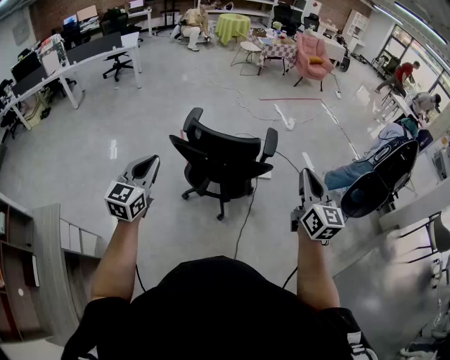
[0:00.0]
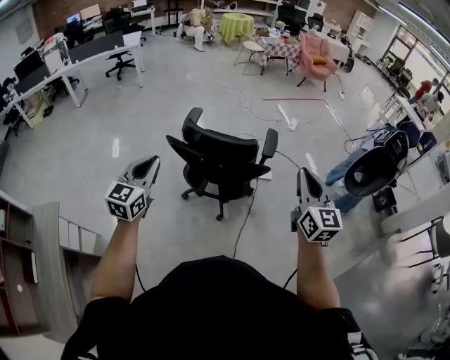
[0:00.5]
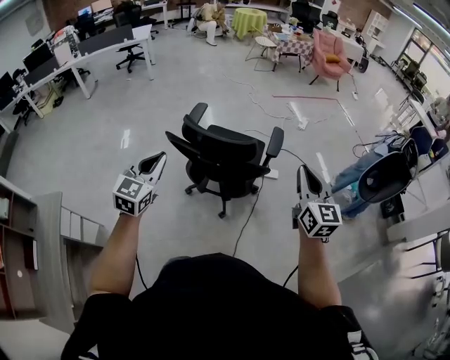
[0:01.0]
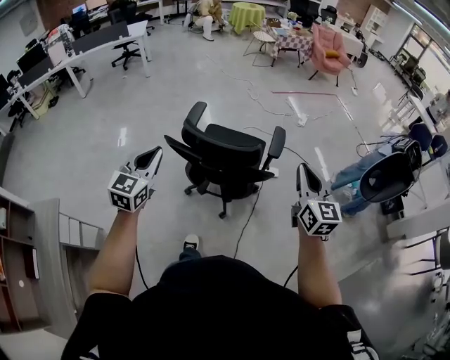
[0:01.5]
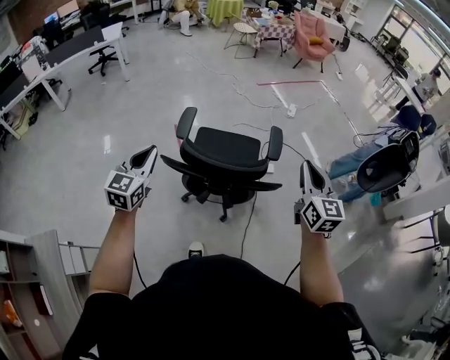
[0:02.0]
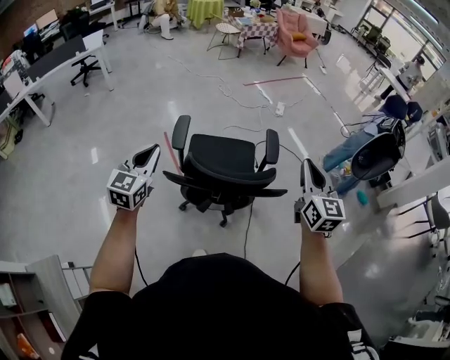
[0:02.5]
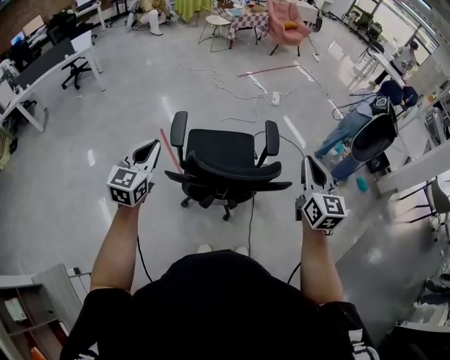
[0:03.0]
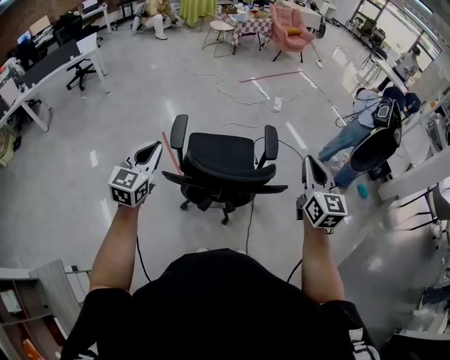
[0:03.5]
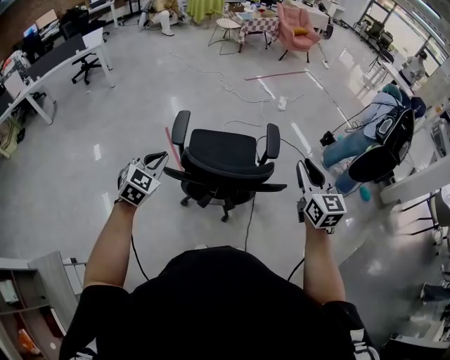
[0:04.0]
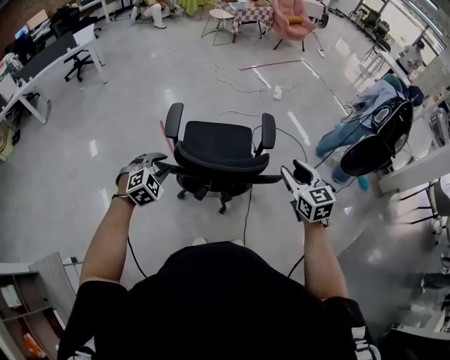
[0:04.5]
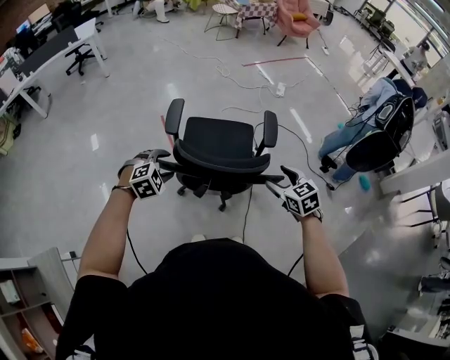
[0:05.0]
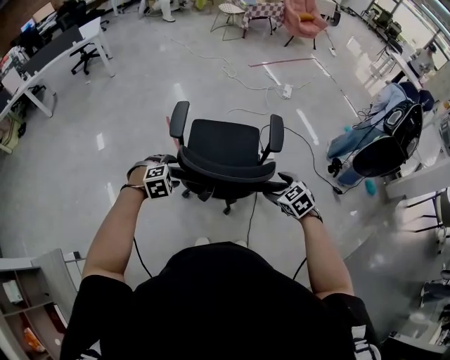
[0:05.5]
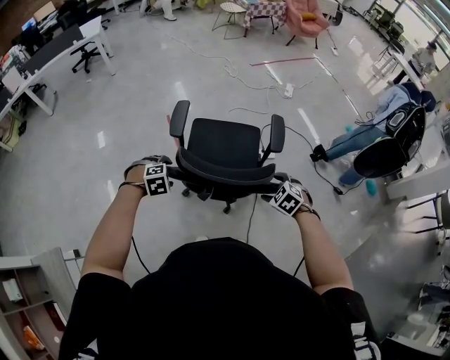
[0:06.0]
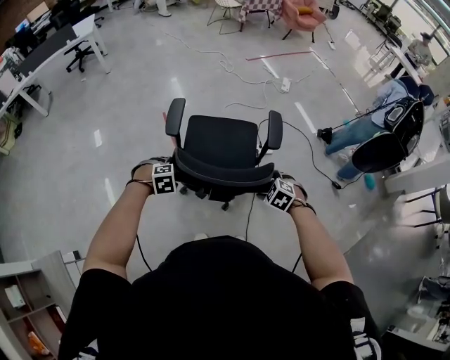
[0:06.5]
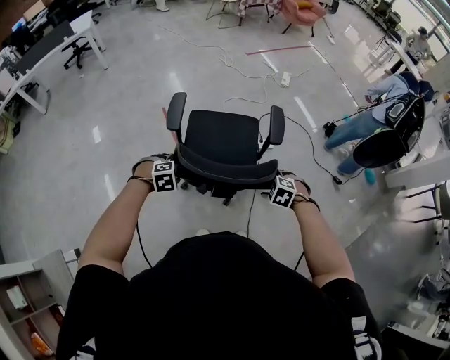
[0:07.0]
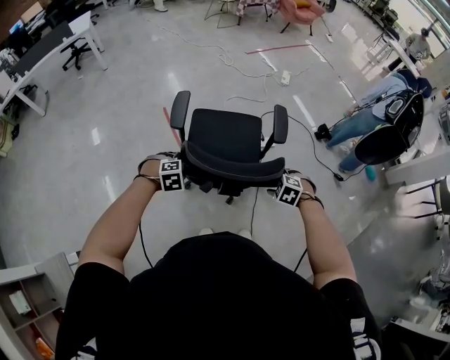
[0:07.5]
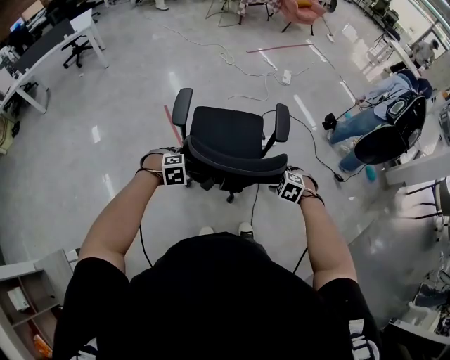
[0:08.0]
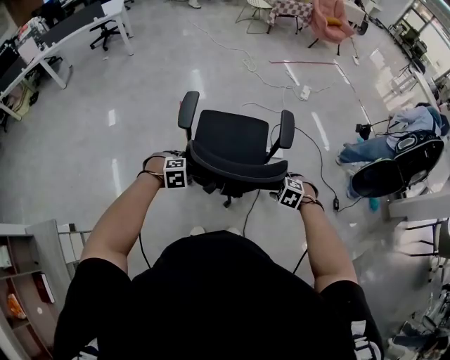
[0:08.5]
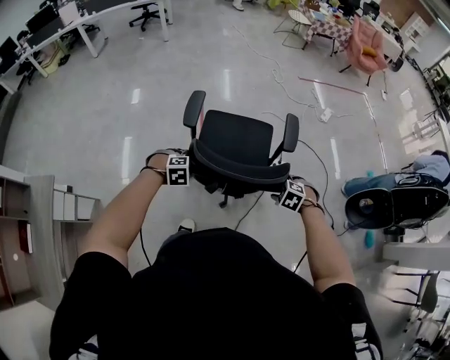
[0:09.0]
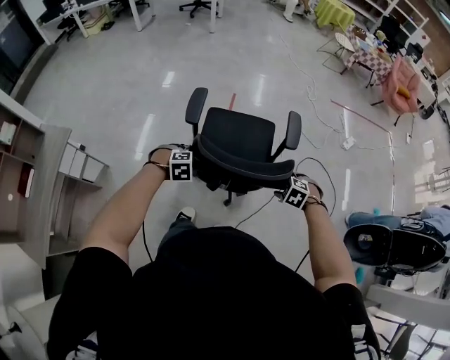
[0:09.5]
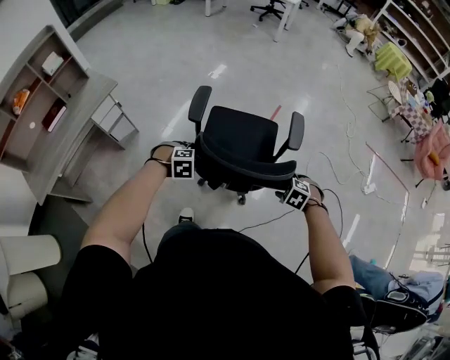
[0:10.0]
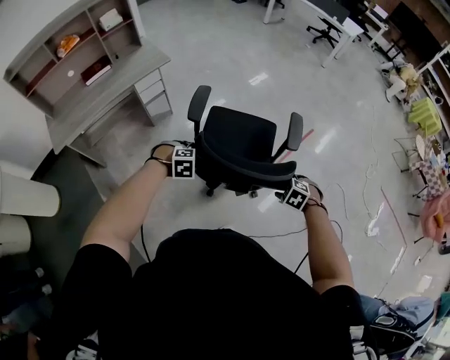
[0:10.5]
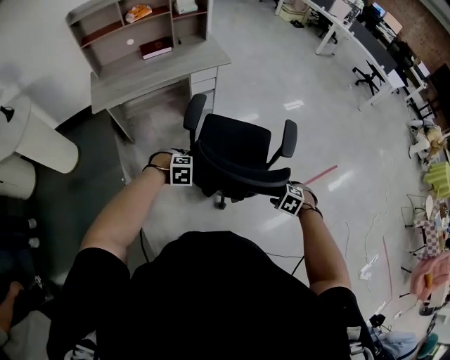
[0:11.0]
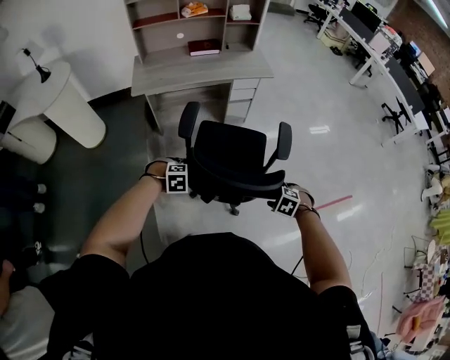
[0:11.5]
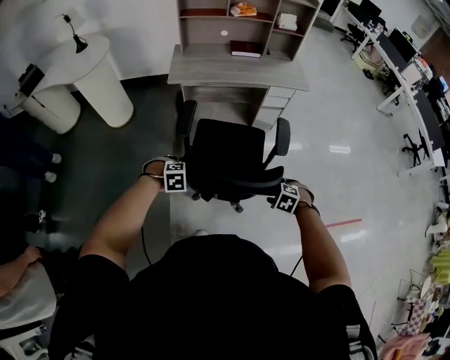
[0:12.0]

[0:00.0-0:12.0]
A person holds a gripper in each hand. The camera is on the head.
0:00.0 to 0:02.0: Both grippers travel together forward, some 20 cm.
0:02.0 to 0:04.0: The left gripper shifts some 10 cm downward and forward, and turns by roughly 30 degrees.
0:04.0 to 0:06.0: The two grippers go roughly 25 cm downward. The left gripper tips its fingers downward by roughly 50 degrees, and opens its fingers. Meanwhile the right gripper angles its fingers downward, by approximately 50 degrees, and opens up.
0:06.0 to 0:08.0: The grippers make only small movements.
0:08.0 to 0:10.0: The left gripper ends up approximately 25 cm from where it was, and rolls counterclockwise, seen from behind, by approximately 50 degrees; the right gripper changes place by roughly 10 cm, and rolls counterclockwise, seen from behind, by approximately 50 degrees.
0:10.0 to 0:12.0: The two grippers travel together, approximately 60 cm. The left gripper rotates around the line of its fingers by roughly 60 degrees, counterclockwise from behind; the right gripper rolls counterclockwise, seen from behind, by about 60 degrees.

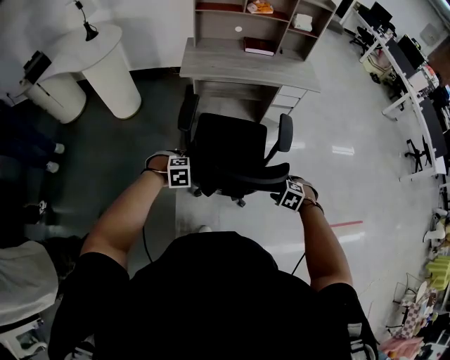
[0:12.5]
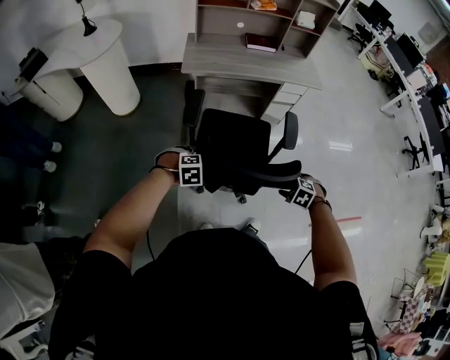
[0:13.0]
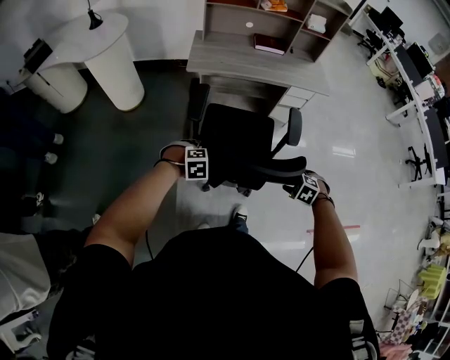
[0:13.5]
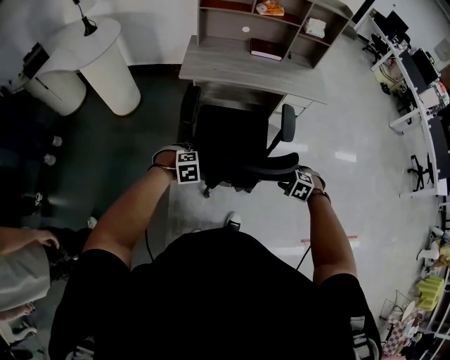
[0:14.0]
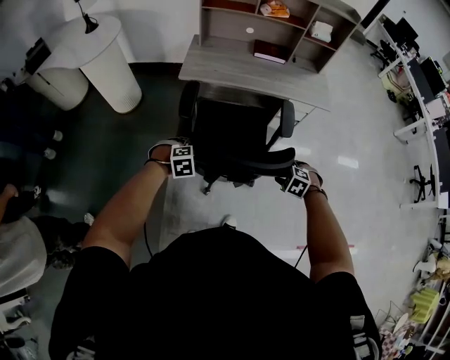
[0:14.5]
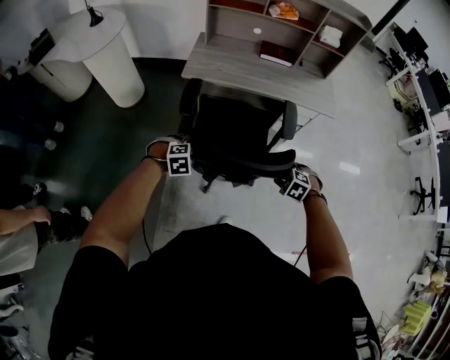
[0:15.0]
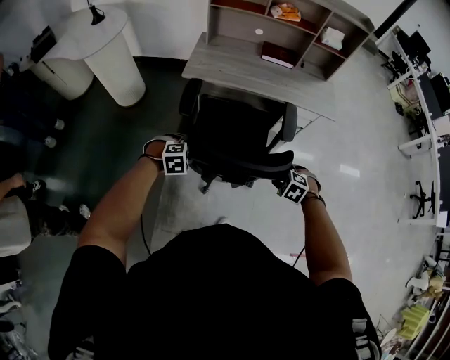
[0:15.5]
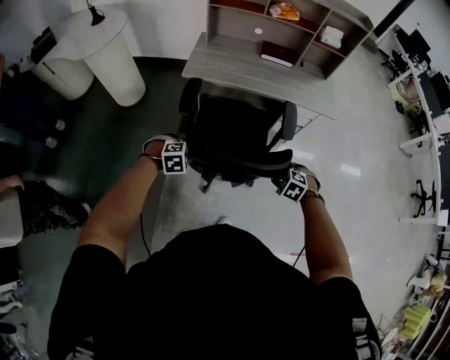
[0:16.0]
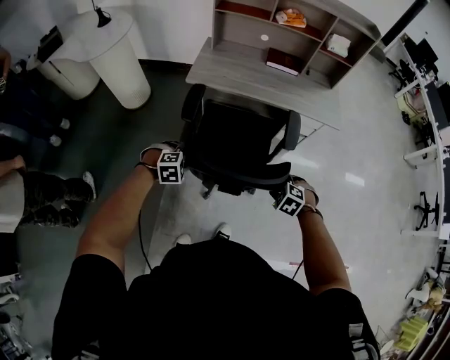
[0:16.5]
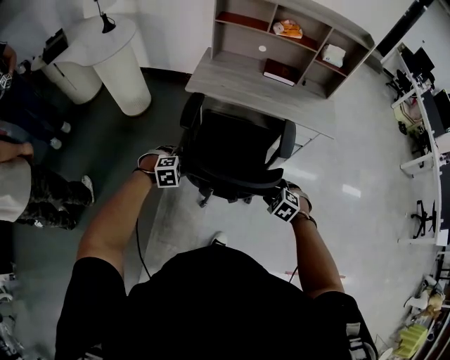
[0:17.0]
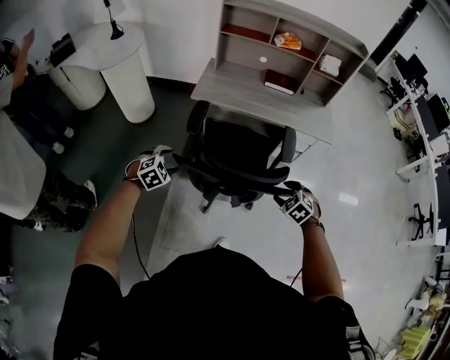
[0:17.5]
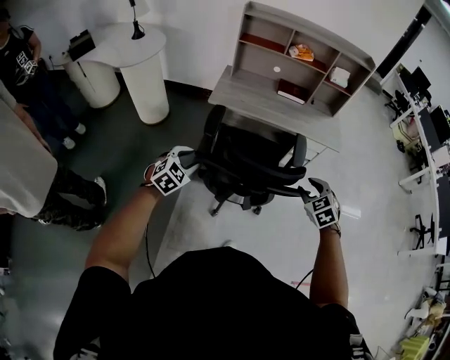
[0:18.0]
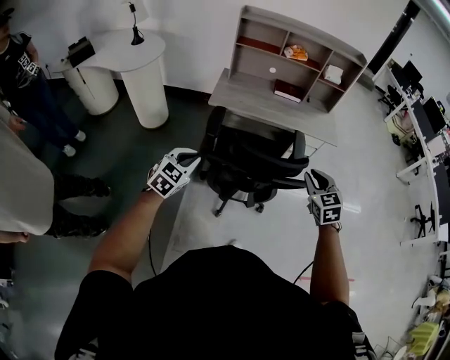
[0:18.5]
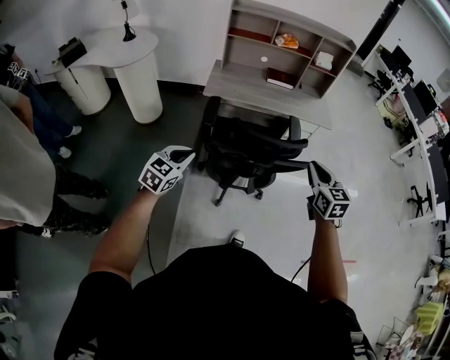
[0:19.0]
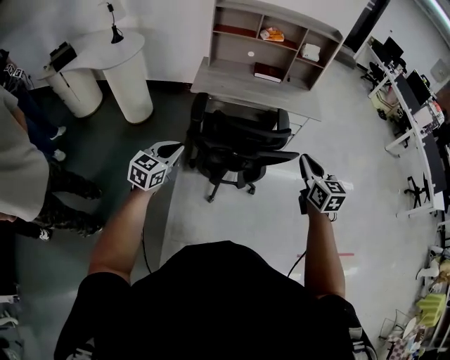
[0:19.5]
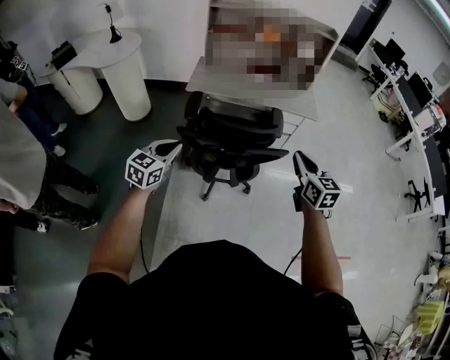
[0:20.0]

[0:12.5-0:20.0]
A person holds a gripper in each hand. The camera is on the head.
0:12.5 to 0:14.5: The left gripper moves some 20 cm. The right gripper ends up approximately 20 cm from where it was.
0:14.5 to 0:16.5: The grippers make only small movements.
0:16.5 to 0:18.0: The left gripper shifts roughly 15 cm upward and to the left, and rotates approximately 40 degrees; the right gripper goes about 15 cm upward, and changes its angle by some 40 degrees.
0:18.0 to 0:20.0: The right gripper is displaced upward and backward by some 15 cm, turns by roughly 50 degrees, and closes its fingers, while the left gripper is displaced backward, upward and to the right by some 15 cm, swivels approximately 30 degrees, and closes its fingers.

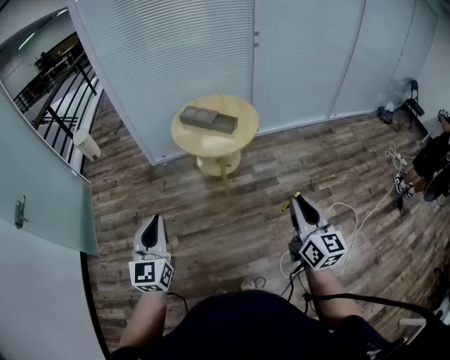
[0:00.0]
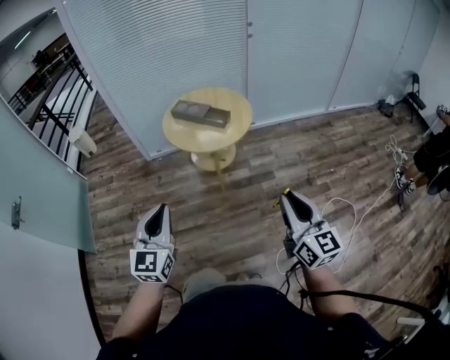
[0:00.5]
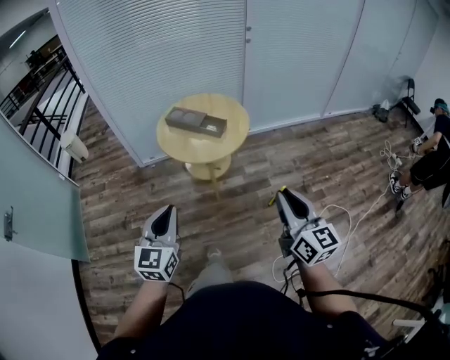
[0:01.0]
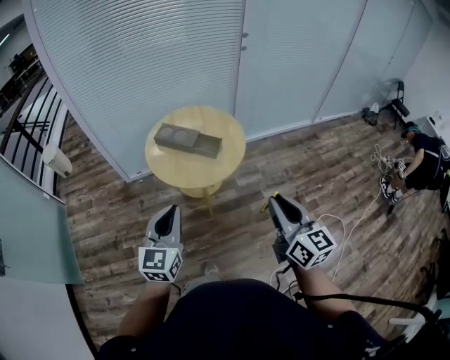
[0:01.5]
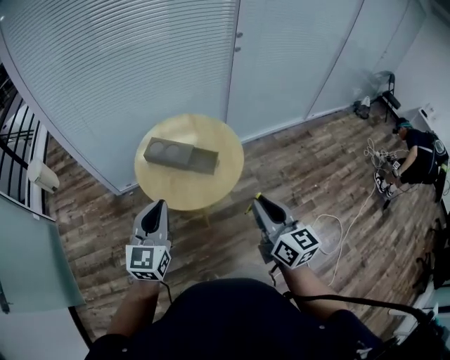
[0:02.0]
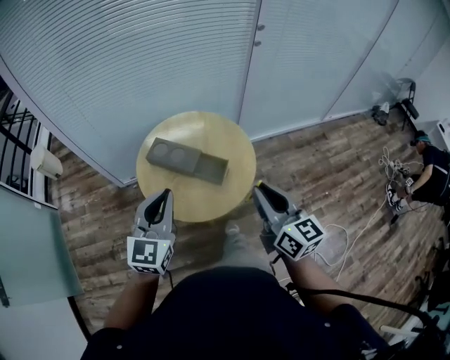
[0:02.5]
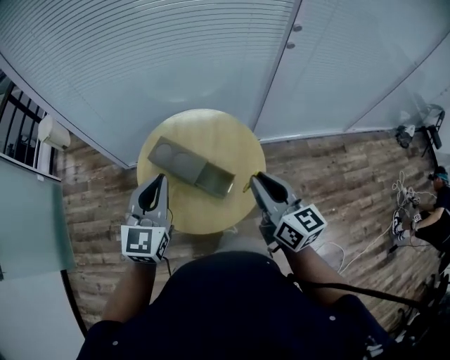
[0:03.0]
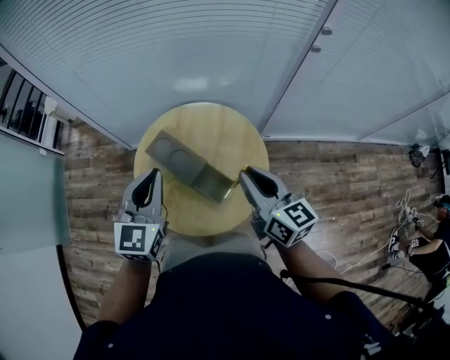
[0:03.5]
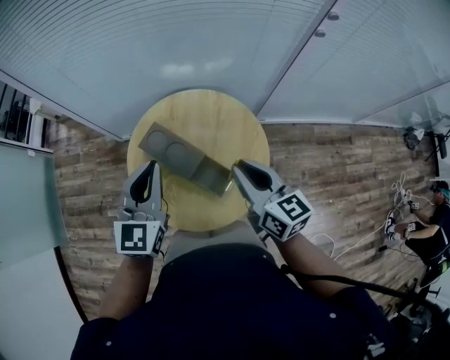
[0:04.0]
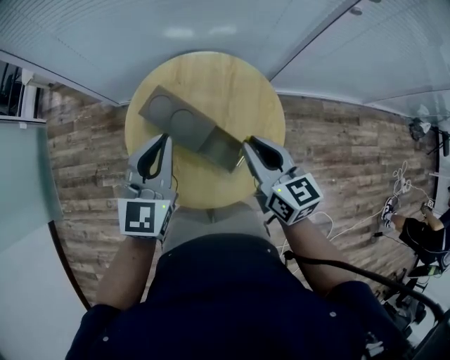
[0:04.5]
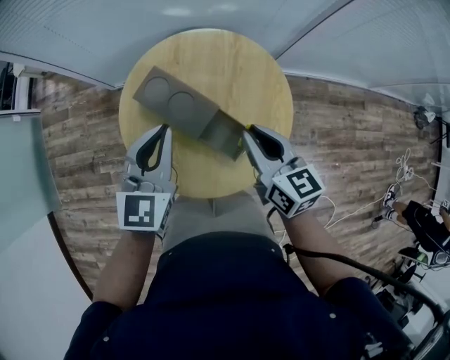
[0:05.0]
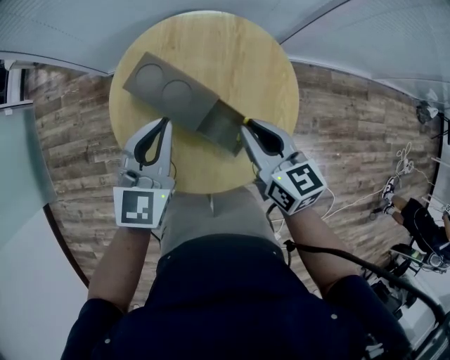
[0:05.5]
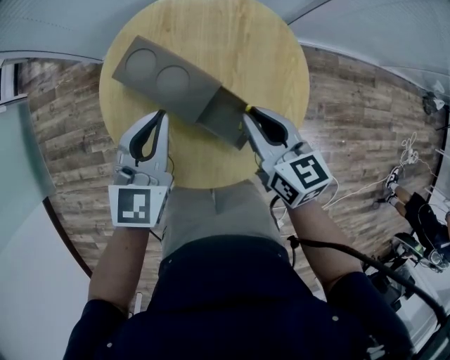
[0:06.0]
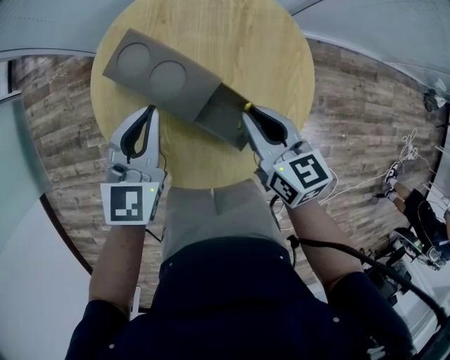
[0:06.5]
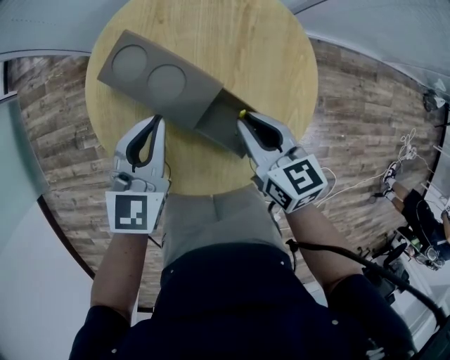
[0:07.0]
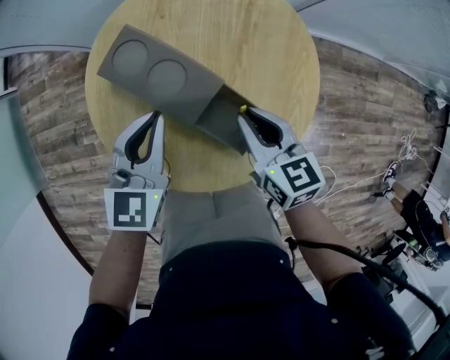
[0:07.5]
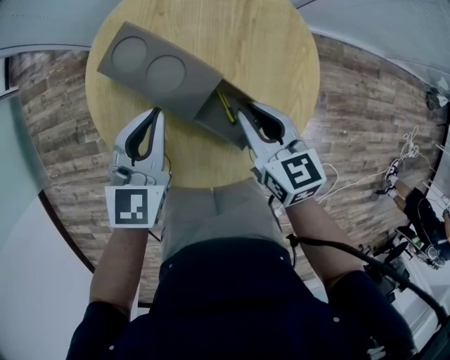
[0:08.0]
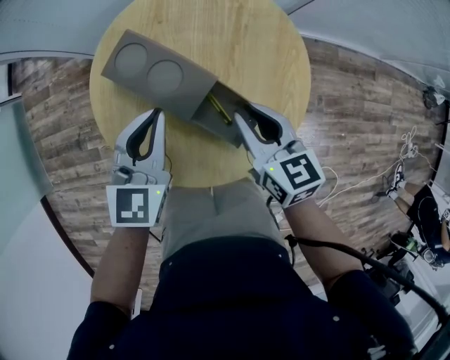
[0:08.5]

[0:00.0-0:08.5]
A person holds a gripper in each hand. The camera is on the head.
0:00.0 to 0:02.0: The two grippers travel together, forward, about 40 cm.
0:02.0 to 0:04.0: Both grippers move forward, some 40 cm. The right gripper rotates about 30 degrees.
0:04.0 to 0:06.5: The two grippers go some 25 cm downward.
0:06.5 to 0:08.5: The grippers make only small movements.
